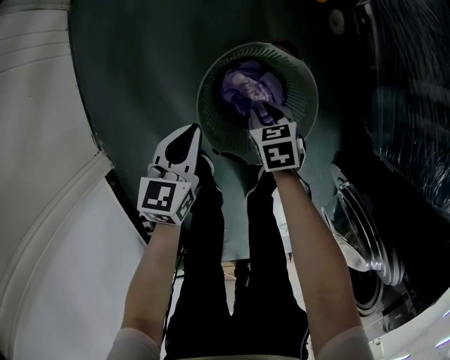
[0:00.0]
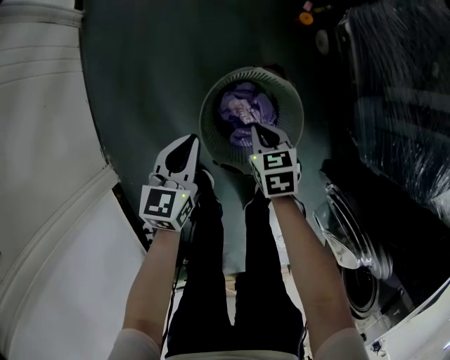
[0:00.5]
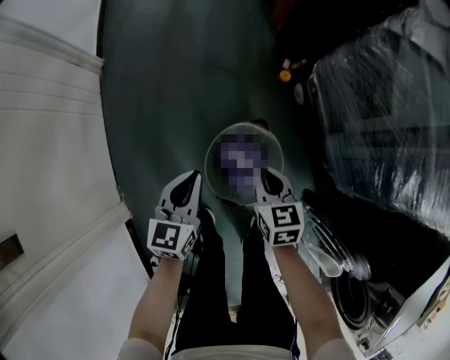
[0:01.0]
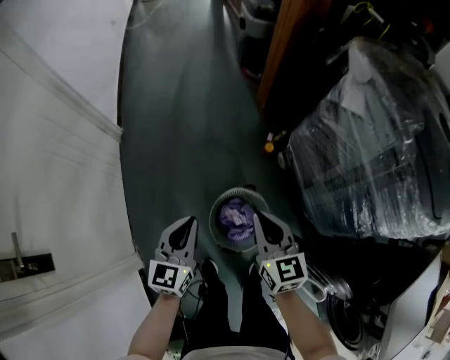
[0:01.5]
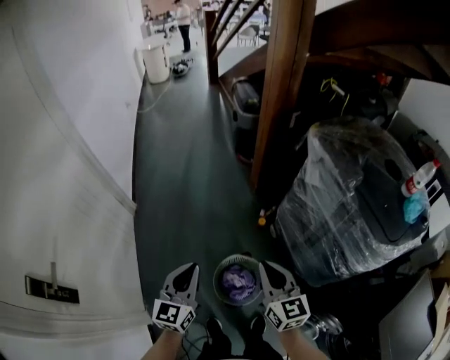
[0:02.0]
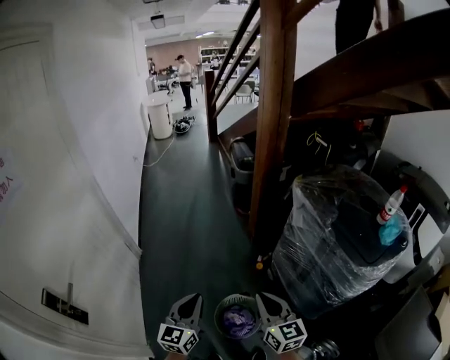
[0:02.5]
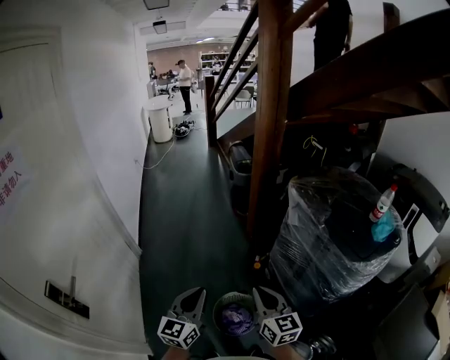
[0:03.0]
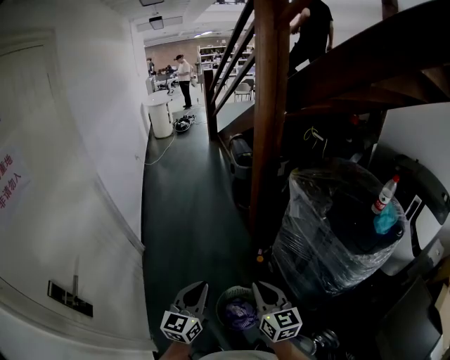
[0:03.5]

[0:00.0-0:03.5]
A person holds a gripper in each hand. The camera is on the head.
0:00.0 to 0:02.0: The grippers both shift upward by about 60 cm. The right gripper tilts its fingers about 50 degrees upward, while the left gripper swivels about 30 degrees.
0:02.0 to 0:03.5: Both grippers travel together upward and backward, roughly 10 cm.

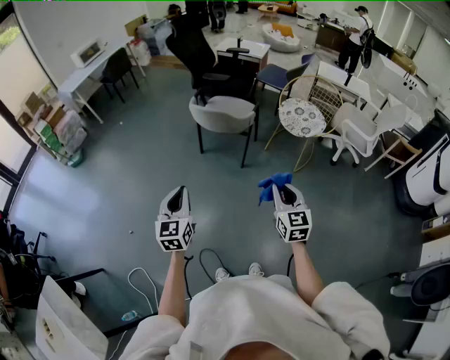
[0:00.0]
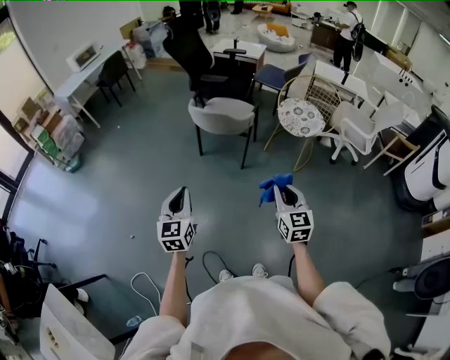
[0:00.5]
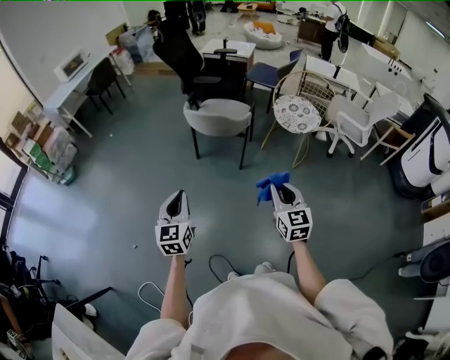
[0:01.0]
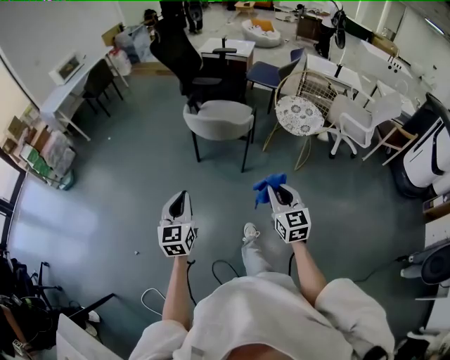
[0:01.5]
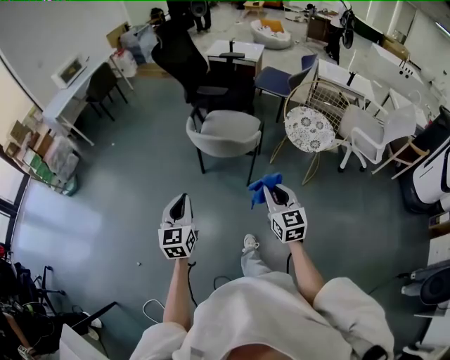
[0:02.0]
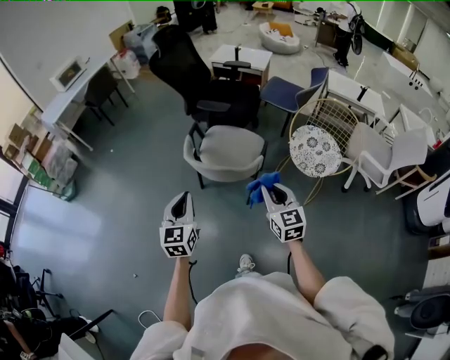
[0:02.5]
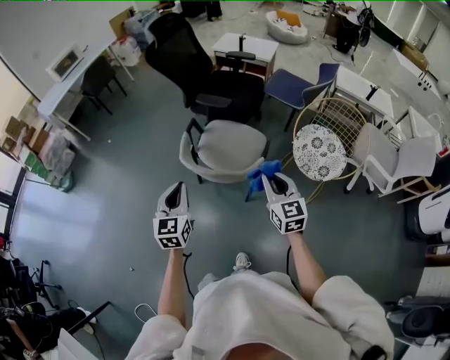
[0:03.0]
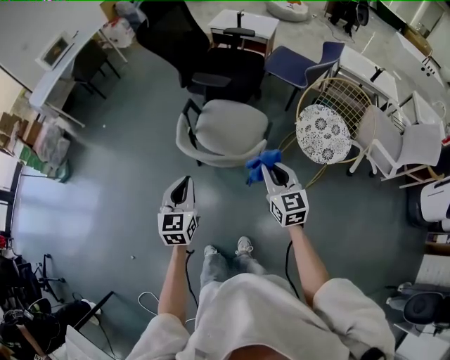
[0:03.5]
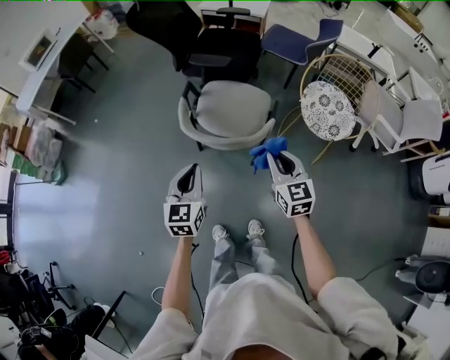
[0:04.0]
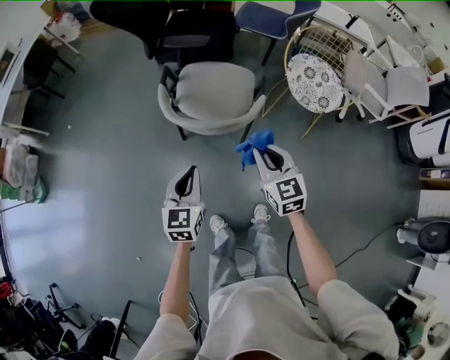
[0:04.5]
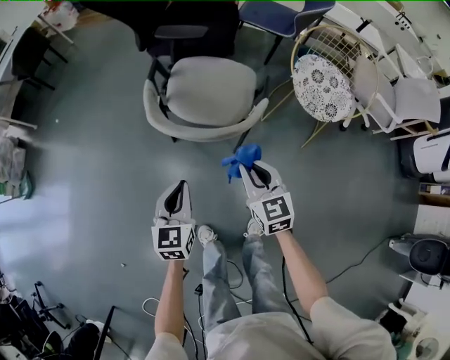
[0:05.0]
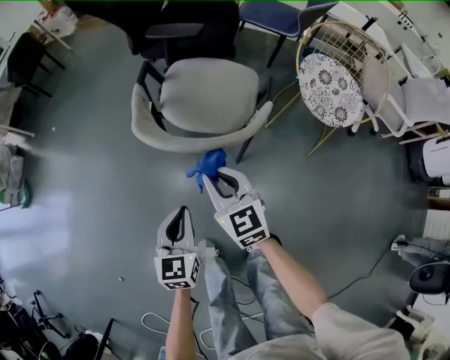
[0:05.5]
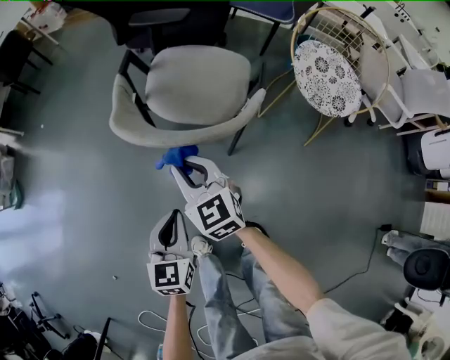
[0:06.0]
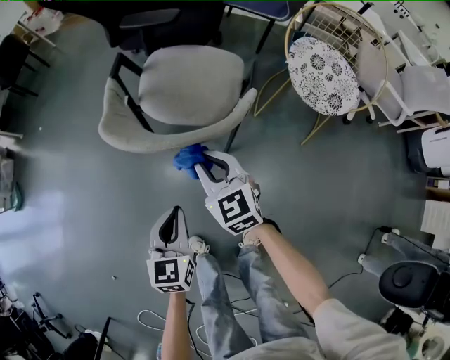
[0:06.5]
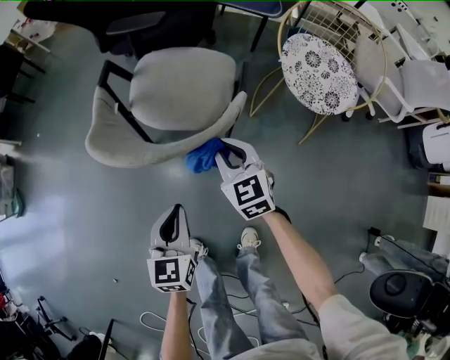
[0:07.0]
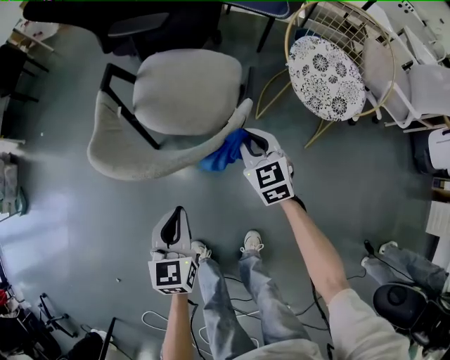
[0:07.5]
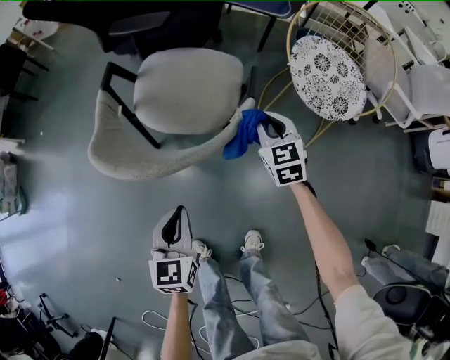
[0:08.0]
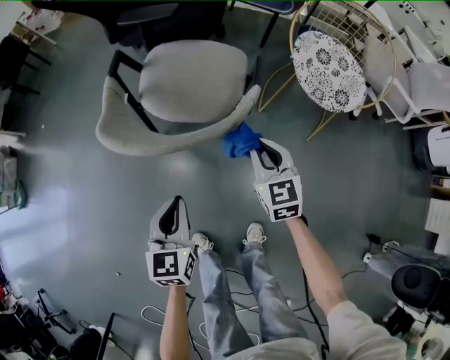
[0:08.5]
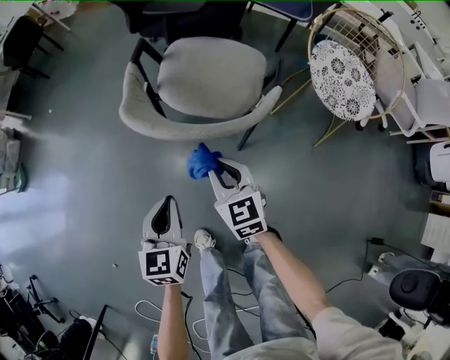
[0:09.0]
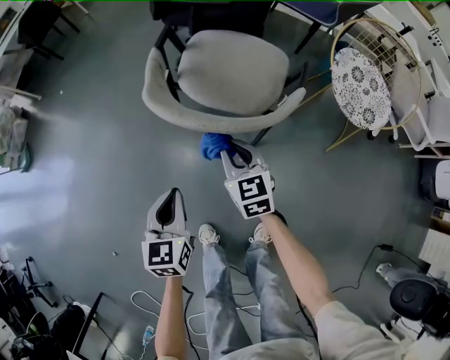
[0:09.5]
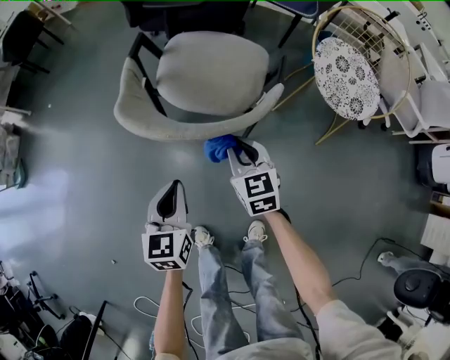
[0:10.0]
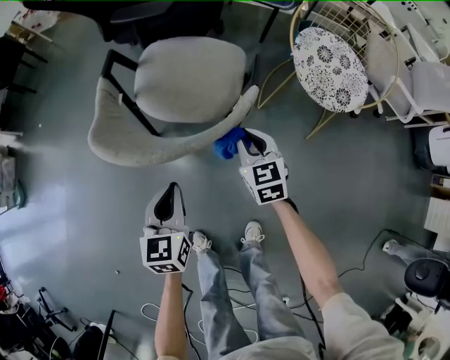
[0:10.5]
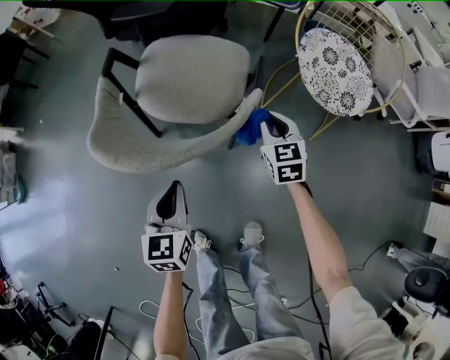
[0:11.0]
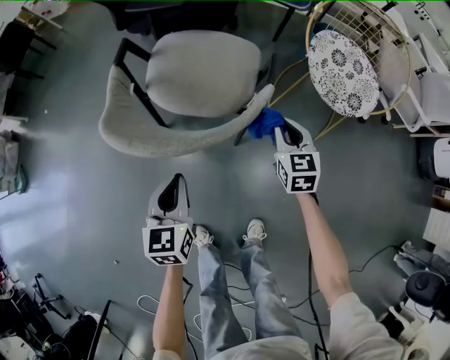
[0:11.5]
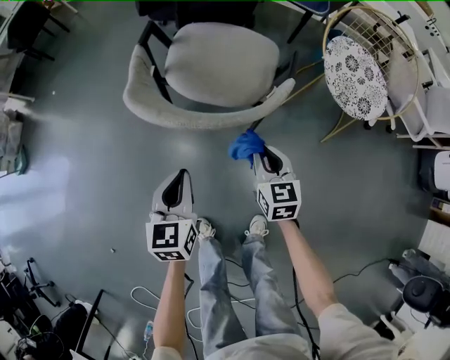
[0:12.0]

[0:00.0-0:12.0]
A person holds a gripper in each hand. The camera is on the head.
0:00.0 to 0:02.0: The grippers both shift forward by about 20 cm.
0:02.0 to 0:04.0: Both grippers move forward, approximately 25 cm.
0:04.0 to 0:06.0: The left gripper heads downward, covering roughly 25 cm; the right gripper heads downward and to the left, covering about 30 cm.
0:06.0 to 0:08.0: The left gripper heads to the right and forward, covering roughly 10 cm; the right gripper is displaced to the right and forward by roughly 30 cm, and changes its angle by approximately 20 degrees.
0:08.0 to 0:10.0: The left gripper is displaced to the left by roughly 5 cm; the right gripper is displaced to the left and backward by roughly 20 cm.
0:10.0 to 0:12.0: The right gripper reaches about 20 cm to the right, then returns.

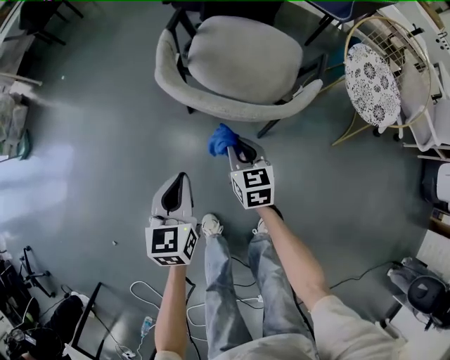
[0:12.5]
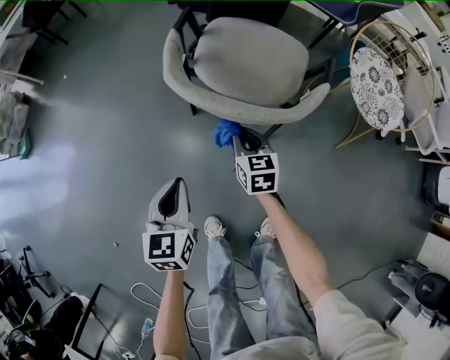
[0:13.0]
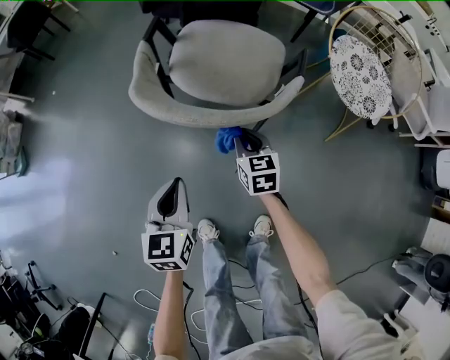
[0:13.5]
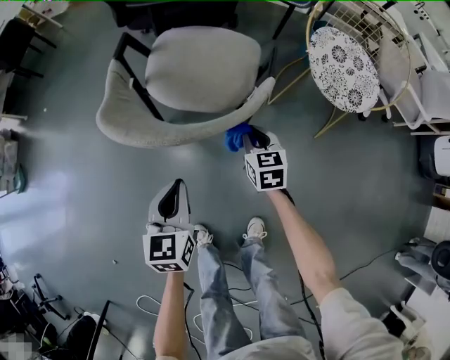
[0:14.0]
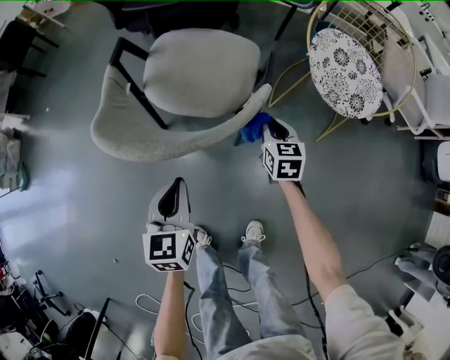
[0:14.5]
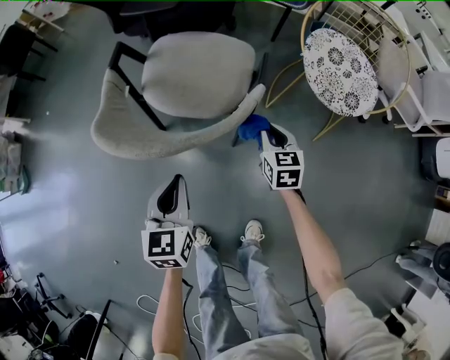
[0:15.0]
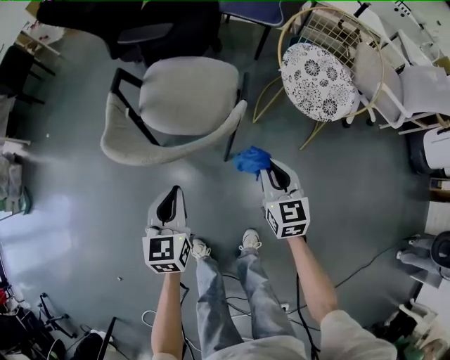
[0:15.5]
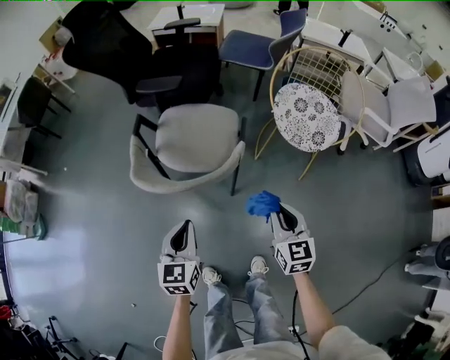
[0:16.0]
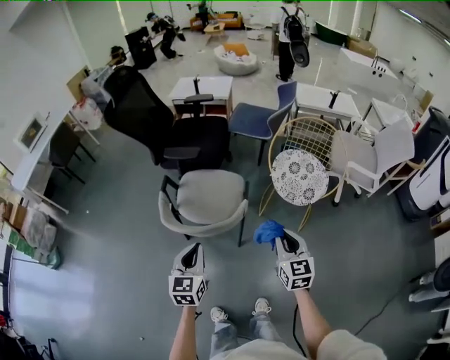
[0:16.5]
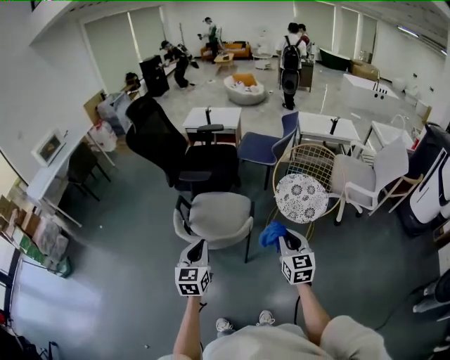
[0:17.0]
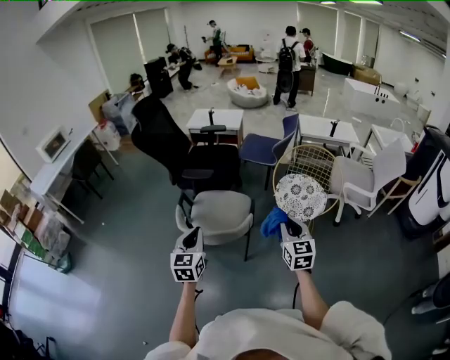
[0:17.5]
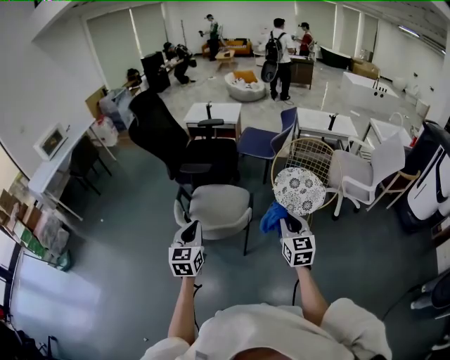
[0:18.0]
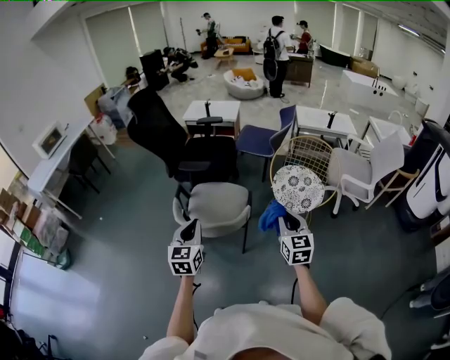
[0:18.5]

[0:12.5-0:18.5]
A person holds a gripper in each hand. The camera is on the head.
0:12.5 to 0:14.5: The left gripper moves to the right and forward, roughly 15 cm. The right gripper travels to the right by some 25 cm.
0:14.5 to 0:16.5: The left gripper goes about 25 cm upward, while the right gripper travels upward and backward by roughly 40 cm, and swivels about 20 degrees.
0:16.5 to 0:18.5: The two grippers go about 10 cm upward.

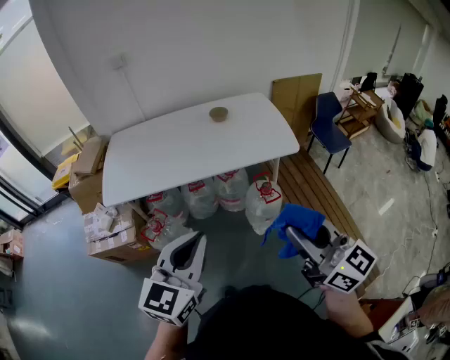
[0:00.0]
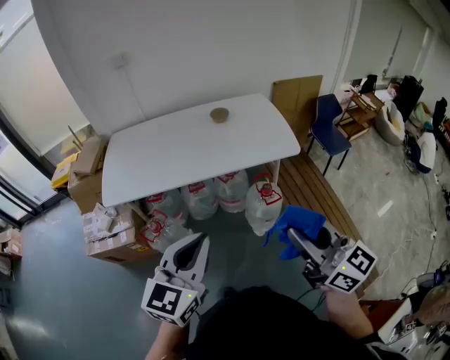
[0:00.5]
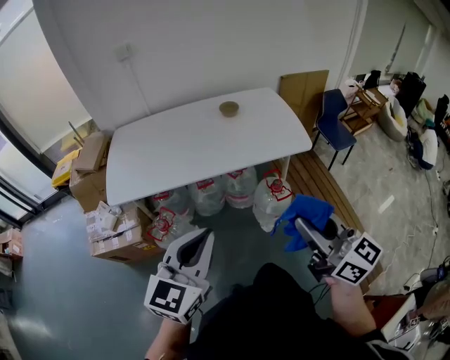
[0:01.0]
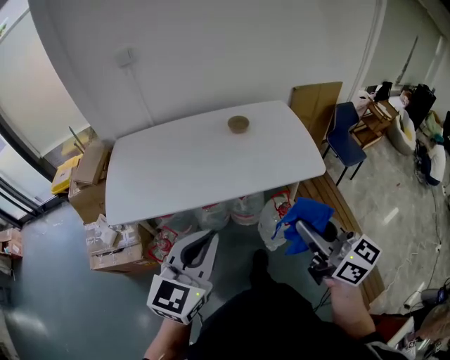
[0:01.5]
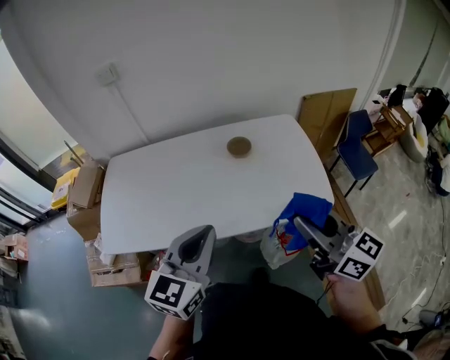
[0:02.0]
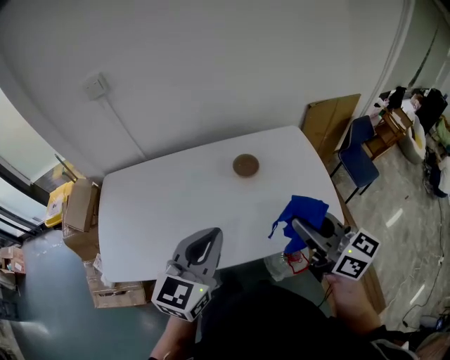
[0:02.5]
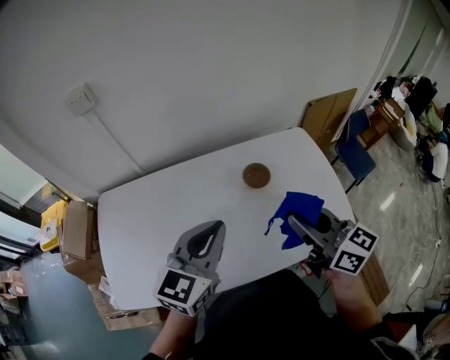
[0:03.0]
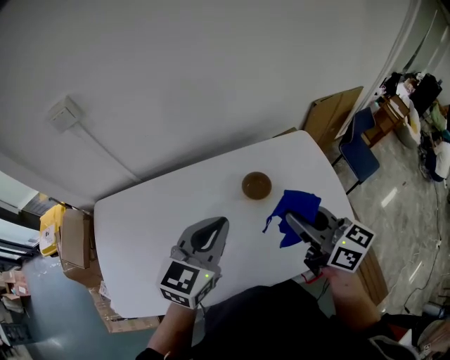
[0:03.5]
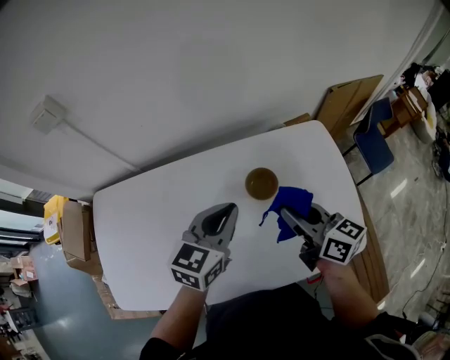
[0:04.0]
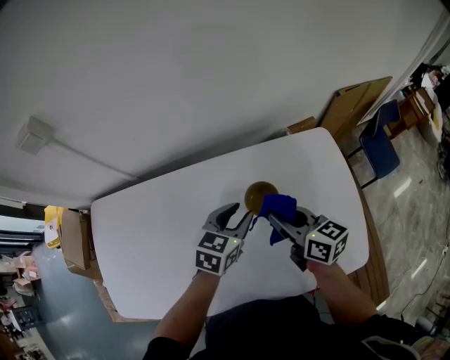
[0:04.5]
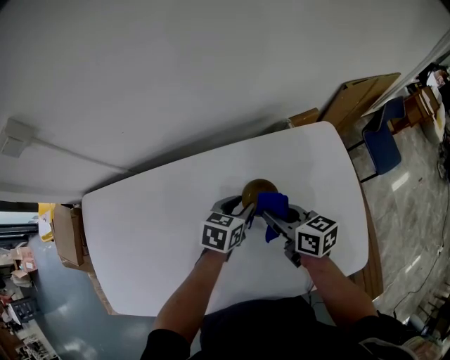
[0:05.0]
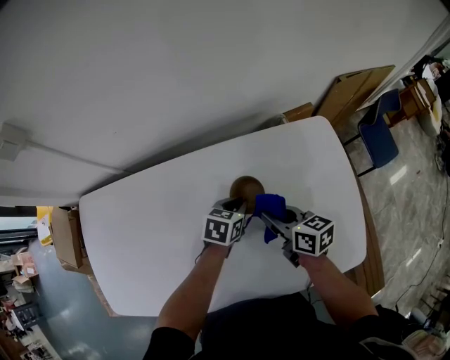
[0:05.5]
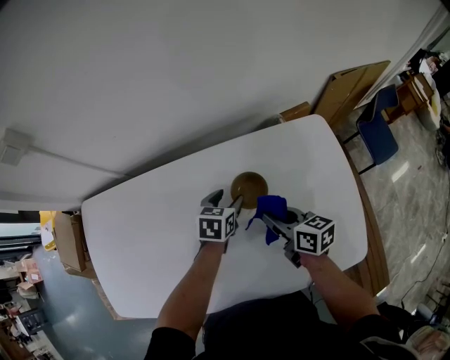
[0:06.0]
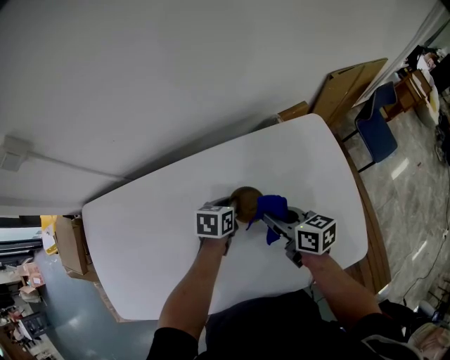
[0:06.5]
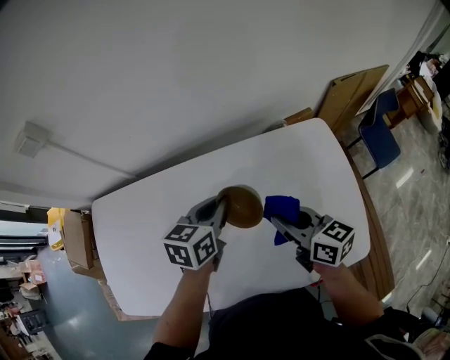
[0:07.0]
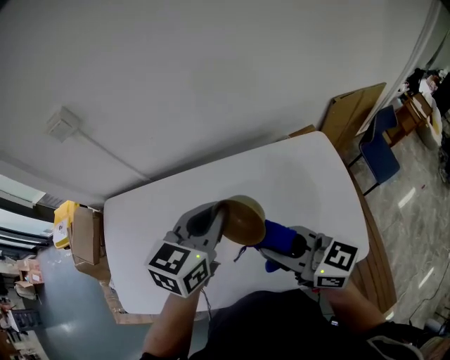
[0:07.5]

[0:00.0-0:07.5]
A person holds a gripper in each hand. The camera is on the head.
0:00.0 to 0:02.0: The grippers both shift forward by some 35 cm.
0:02.0 to 0:04.0: The right gripper goes some 40 cm forward and downward, and changes its angle by about 20 degrees. The left gripper is displaced forward by roughly 35 cm.
0:04.0 to 0:05.5: Both grippers travel together downward, roughly 20 cm. The left gripper rotates about 30 degrees, and opens, then closes again.
0:05.5 to 0:07.5: The left gripper goes approximately 30 cm upward, rotates about 30 degrees, and opens, then closes again; the right gripper travels upward and backward by some 25 cm, and changes its angle by approximately 30 degrees.
